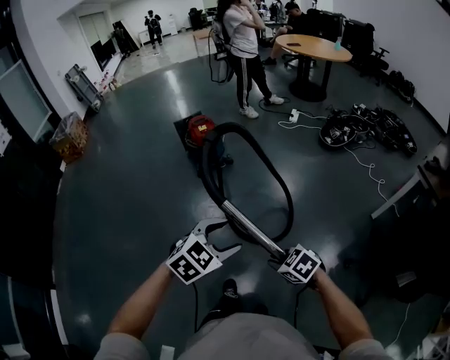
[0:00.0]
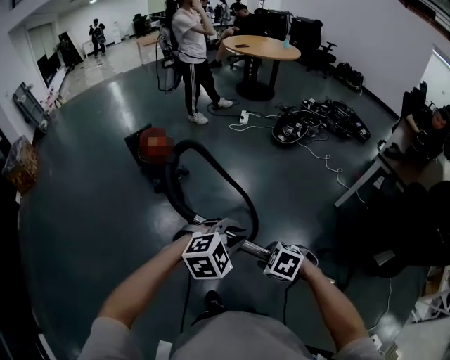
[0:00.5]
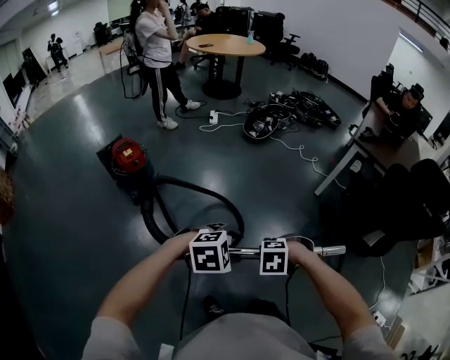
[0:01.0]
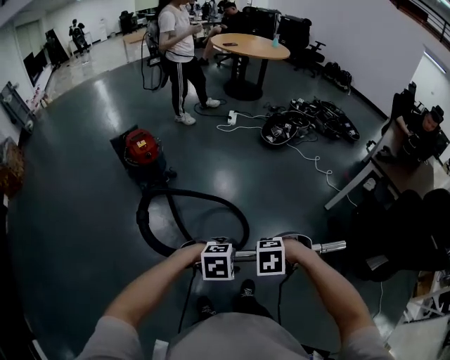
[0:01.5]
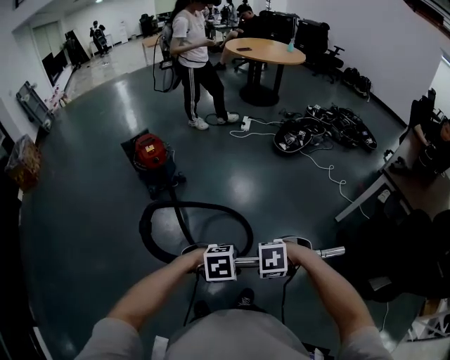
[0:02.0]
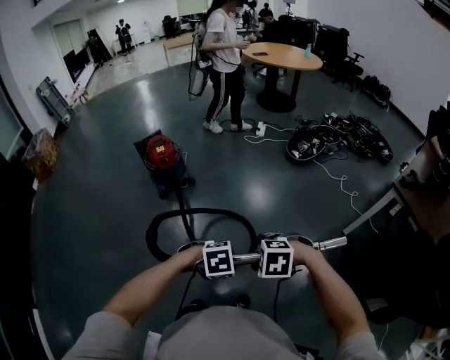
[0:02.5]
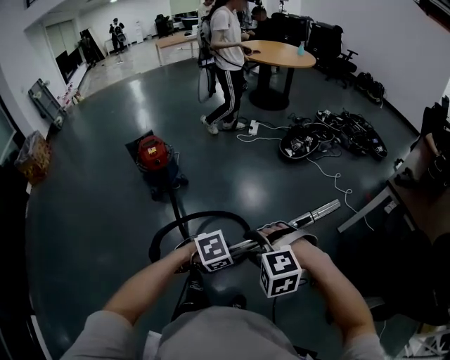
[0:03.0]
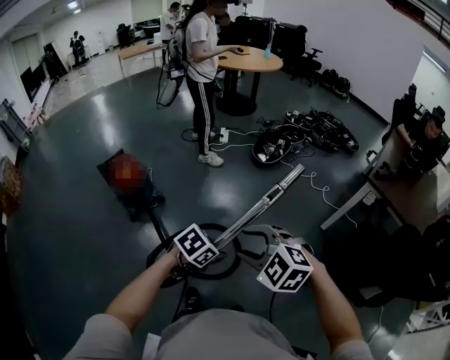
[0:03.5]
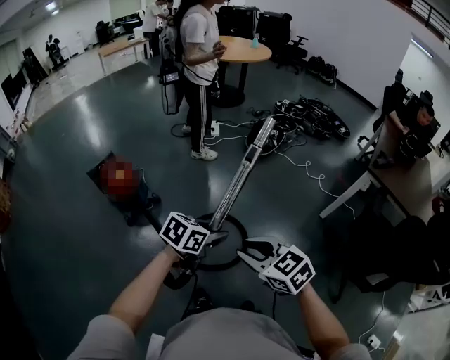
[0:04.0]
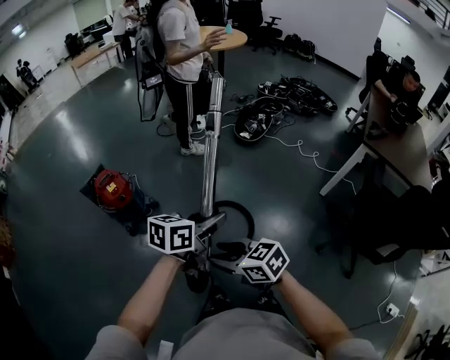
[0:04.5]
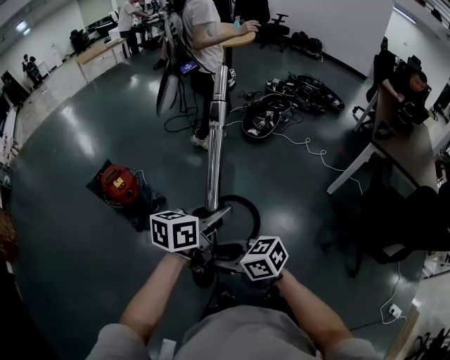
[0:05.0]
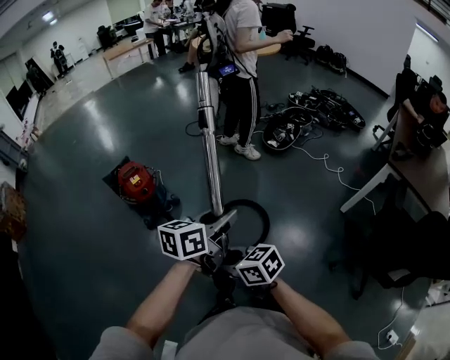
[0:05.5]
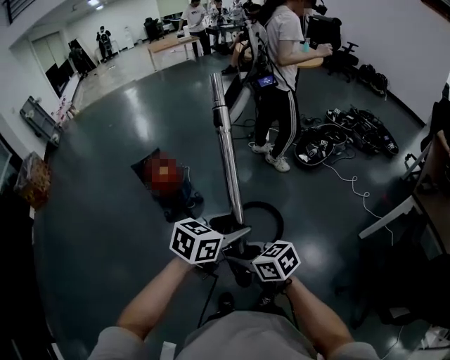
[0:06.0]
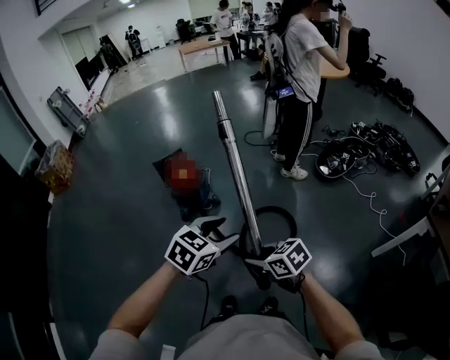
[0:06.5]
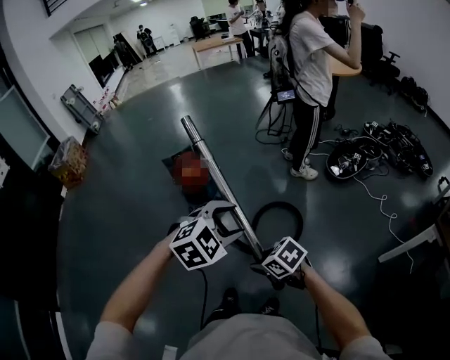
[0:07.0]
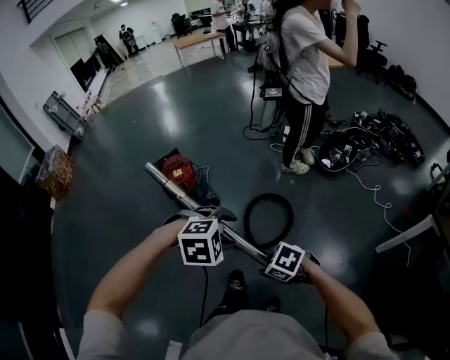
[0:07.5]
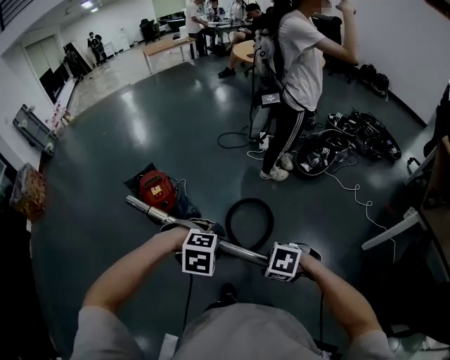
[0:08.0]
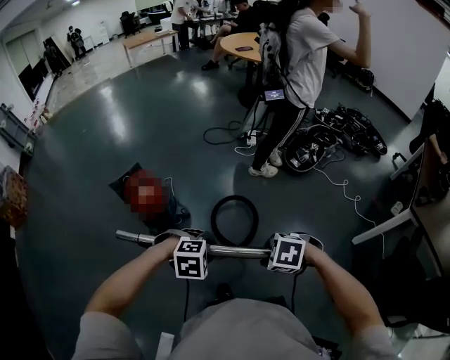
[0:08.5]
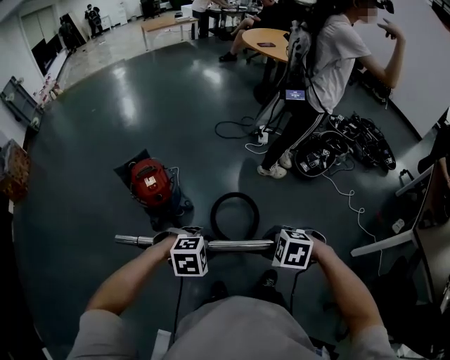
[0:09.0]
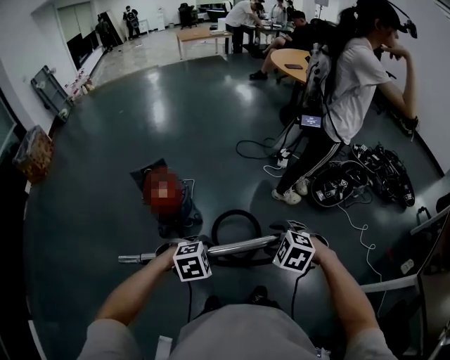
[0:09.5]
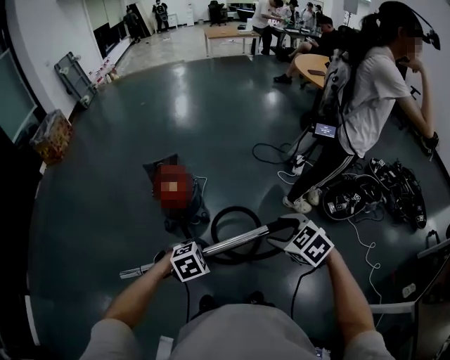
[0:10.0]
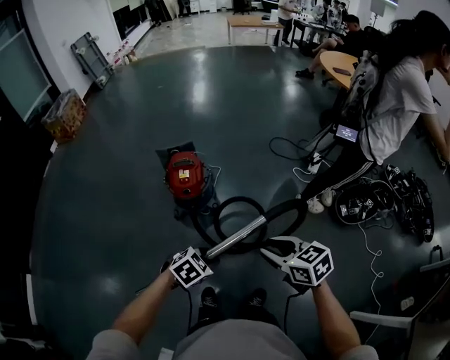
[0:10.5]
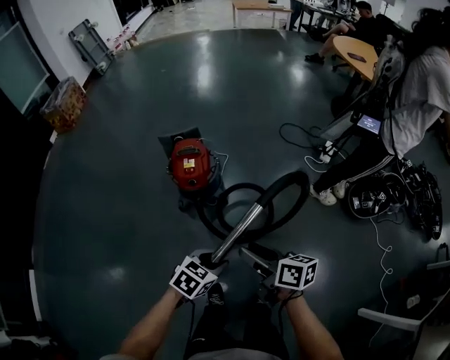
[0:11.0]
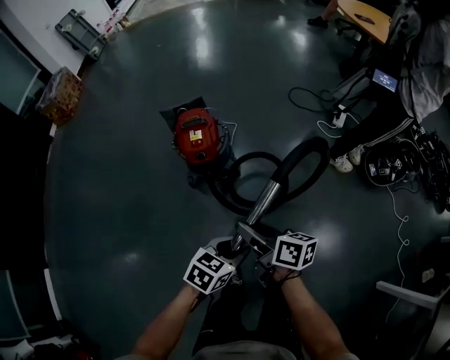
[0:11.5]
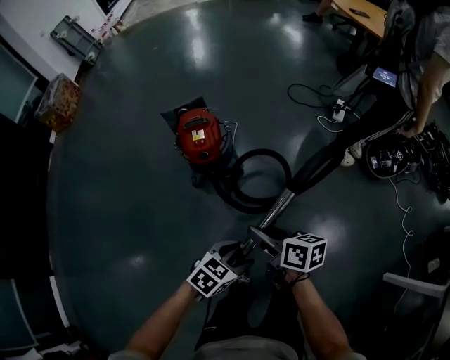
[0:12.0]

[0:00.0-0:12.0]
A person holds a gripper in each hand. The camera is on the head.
0:00.0 to 0:02.0: The left gripper changes place by about 20 cm, changes its angle by some 50 degrees, and closes up. Meanwhile the right gripper changes place by approximately 10 cm, and swivels approximately 40 degrees.
0:02.0 to 0:04.0: The right gripper changes place by approximately 25 cm, tips its fingers upward by roughly 40 degrees, and opens and closes again. The left gripper shifts by some 30 cm, and rotates roughly 50 degrees.
0:04.0 to 0:06.0: The right gripper shifts by roughly 15 cm, and swivels some 30 degrees, while the left gripper moves approximately 10 cm, changes its angle by approximately 20 degrees, and opens.
0:06.0 to 0:08.0: The right gripper moves approximately 15 cm, and angles its fingers downward, by about 40 degrees. The left gripper goes some 10 cm downward, and tilts its fingers approximately 50 degrees downward.
0:08.0 to 0:10.0: The right gripper changes place by about 30 cm, swivels some 30 degrees, and opens up. Meanwhile the left gripper changes place by approximately 15 cm, twists roughly 50 degrees counterclockwise, seen from behind, and closes its fingers.
0:10.0 to 0:12.0: The left gripper shifts roughly 10 cm downward and to the left, rotates about 40 degrees, and opens its fingers; the right gripper heads to the left and downward, covering roughly 25 cm, and twists about 60 degrees clockwise, seen from behind.

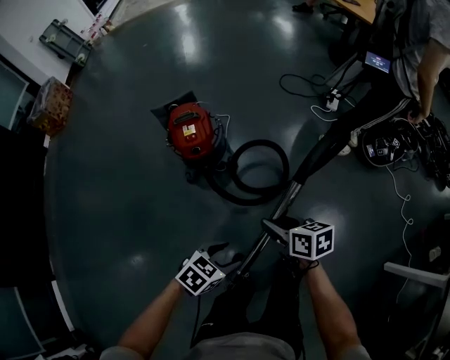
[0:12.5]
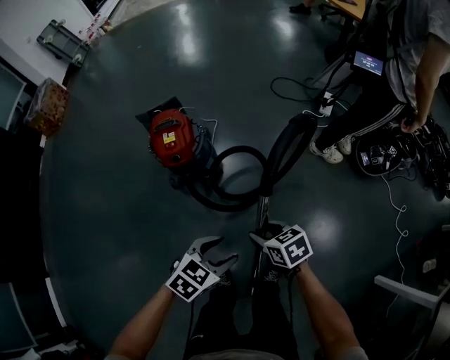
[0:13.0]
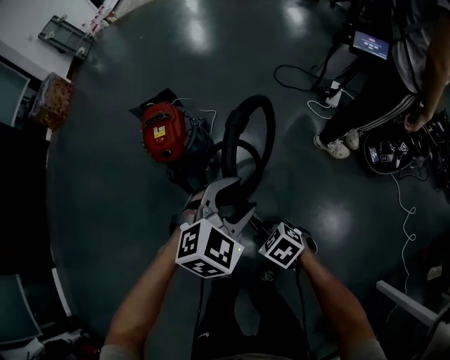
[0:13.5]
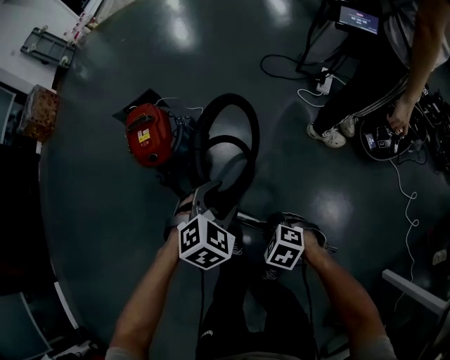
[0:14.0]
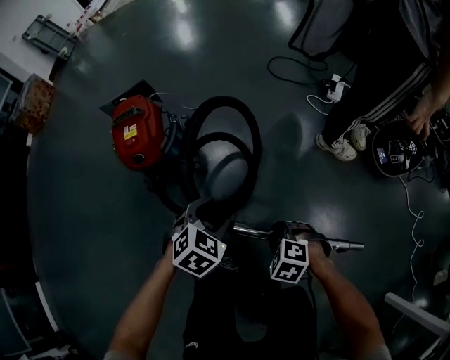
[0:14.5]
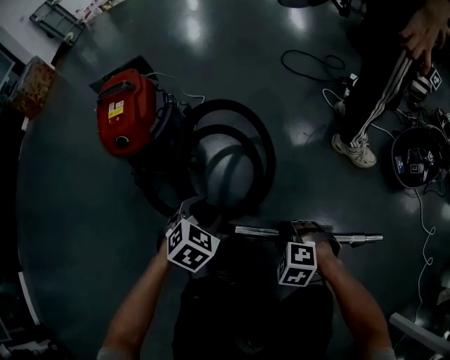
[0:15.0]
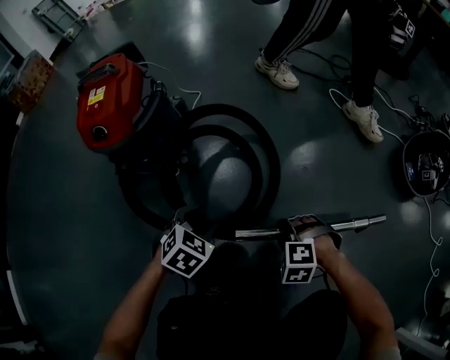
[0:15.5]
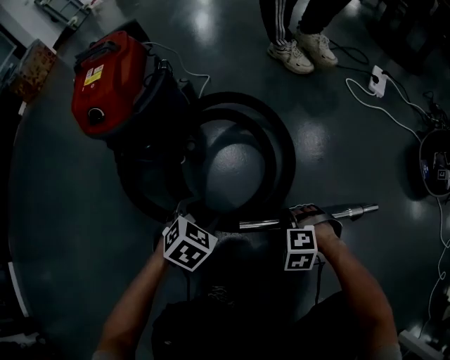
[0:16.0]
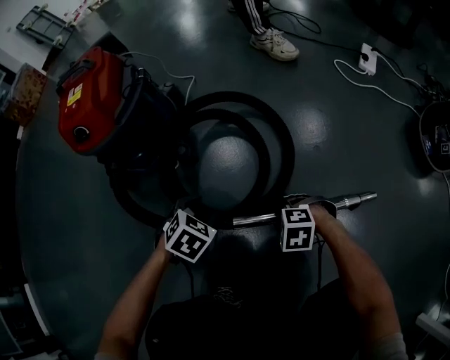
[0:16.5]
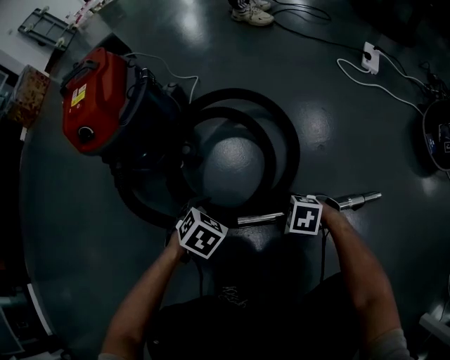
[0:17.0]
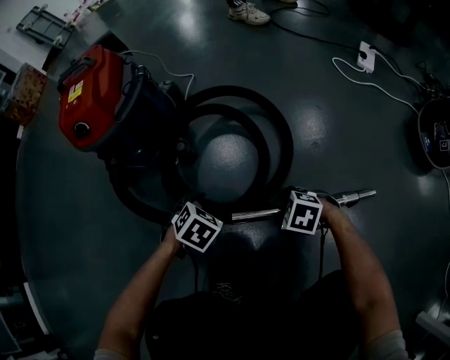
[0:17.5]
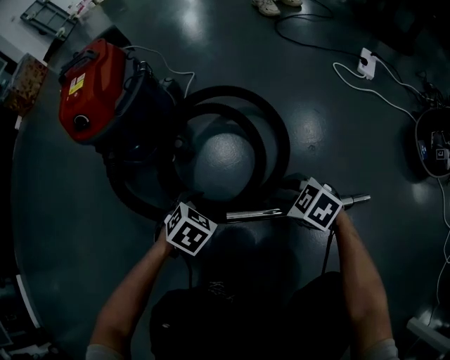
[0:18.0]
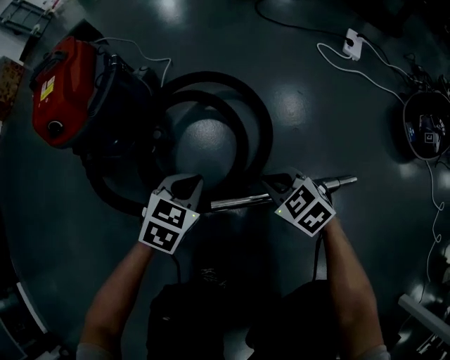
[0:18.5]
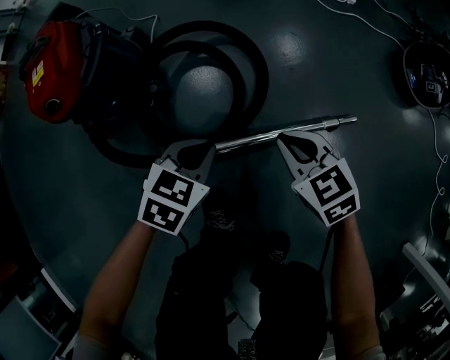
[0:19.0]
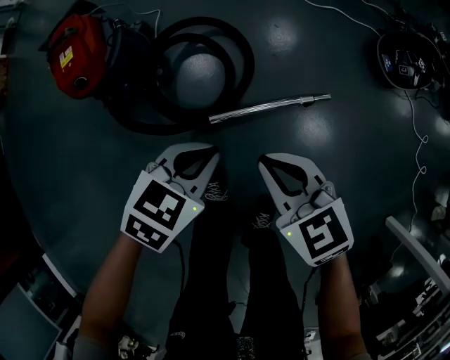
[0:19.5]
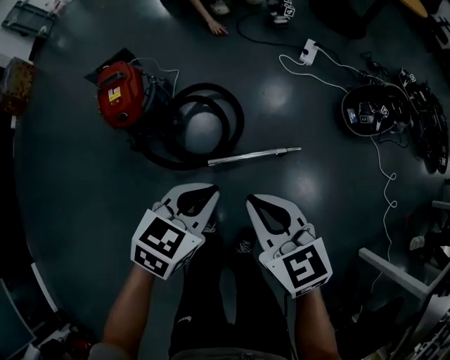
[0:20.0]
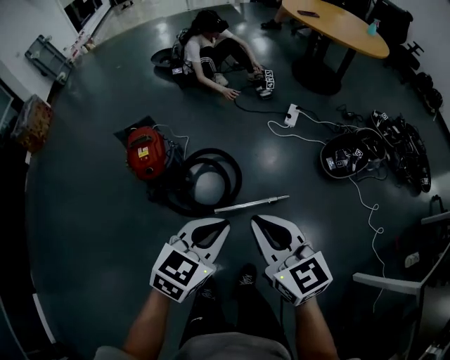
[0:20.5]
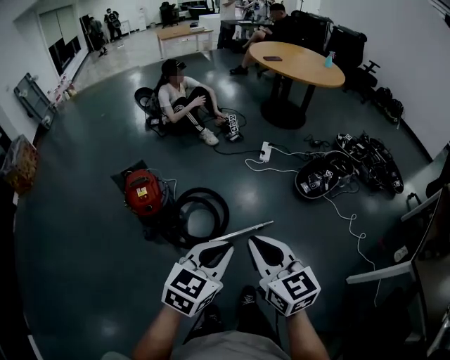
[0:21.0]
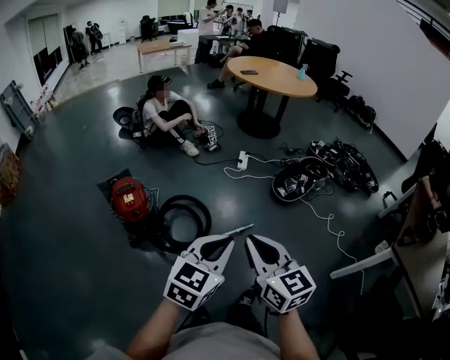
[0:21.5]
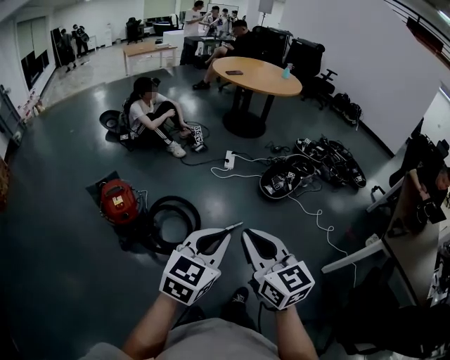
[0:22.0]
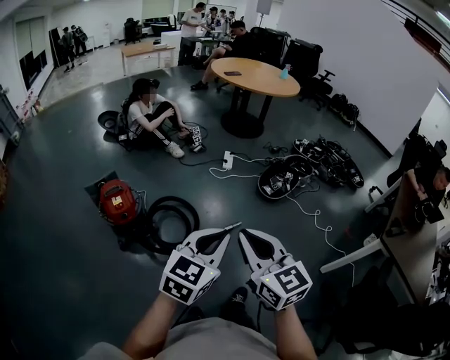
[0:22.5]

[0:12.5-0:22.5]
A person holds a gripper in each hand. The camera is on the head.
0:12.5 to 0:14.5: The right gripper travels downward by approximately 30 cm, and twists roughly 70 degrees counterclockwise, seen from behind. The left gripper ends up some 35 cm from where it was, and swivels some 30 degrees.
0:14.5 to 0:16.5: The two grippers go approximately 35 cm downward.
0:16.5 to 0:18.5: Both grippers move upward, roughly 10 cm. The left gripper closes. Meanwhile the right gripper rotates about 40 degrees, and closes its fingers.
0:18.5 to 0:20.5: Both grippers travel together upward, some 70 cm. The right gripper angles its fingers upward, by roughly 30 degrees. Meanwhile the left gripper changes its angle by approximately 20 degrees.
0:20.5 to 0:22.5: The left gripper is displaced upward and backward by approximately 20 cm, and swivels roughly 20 degrees; the right gripper travels backward and upward by approximately 20 cm, and rotates some 20 degrees.

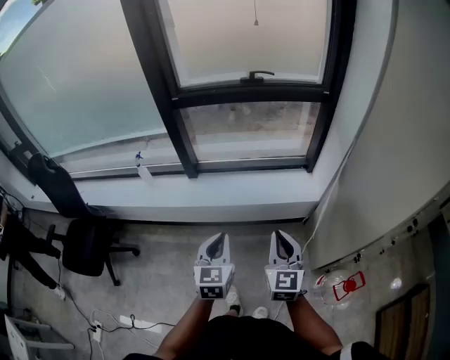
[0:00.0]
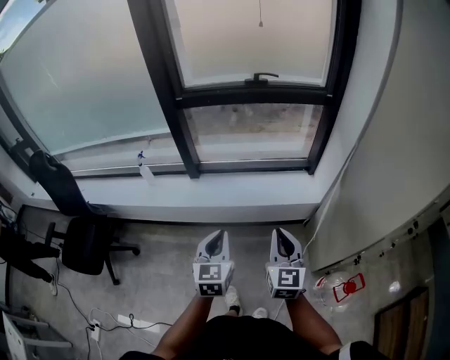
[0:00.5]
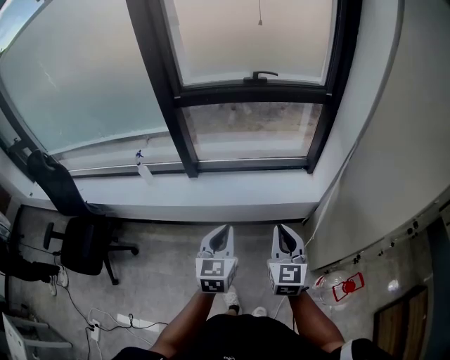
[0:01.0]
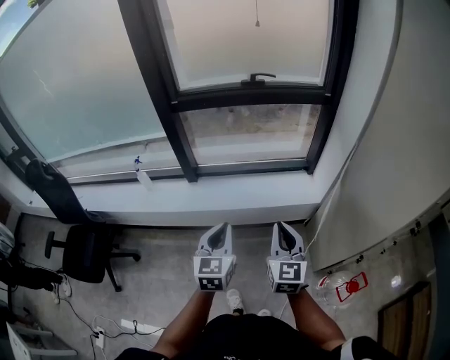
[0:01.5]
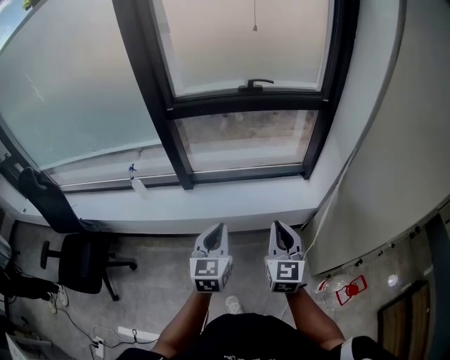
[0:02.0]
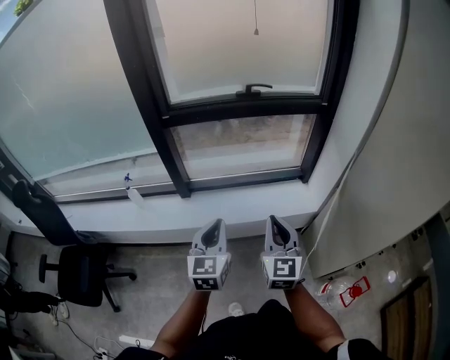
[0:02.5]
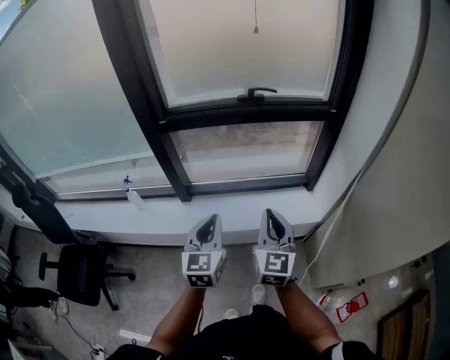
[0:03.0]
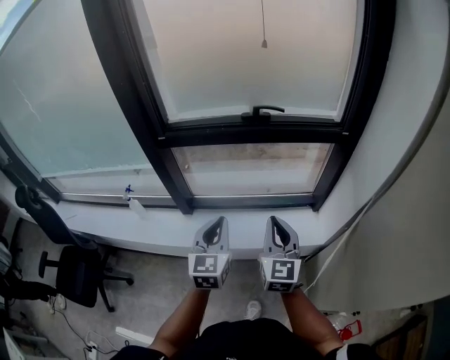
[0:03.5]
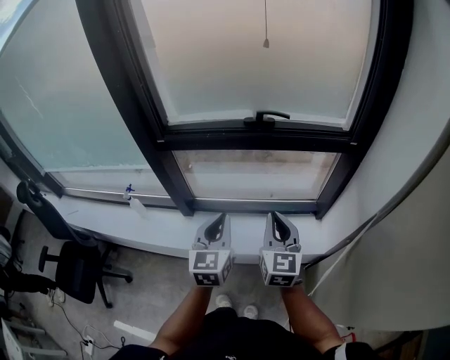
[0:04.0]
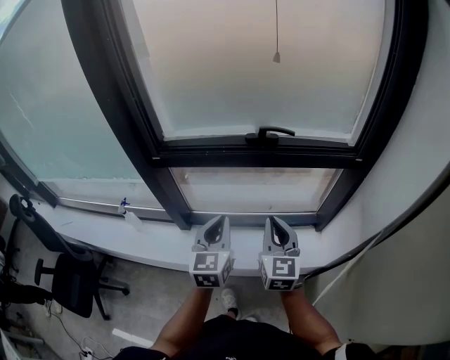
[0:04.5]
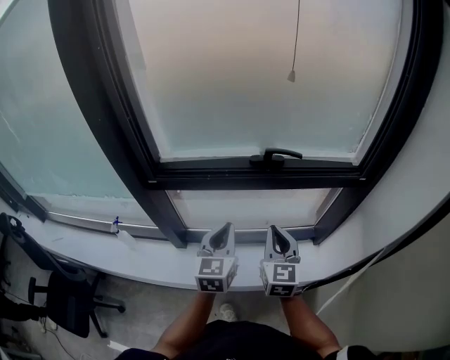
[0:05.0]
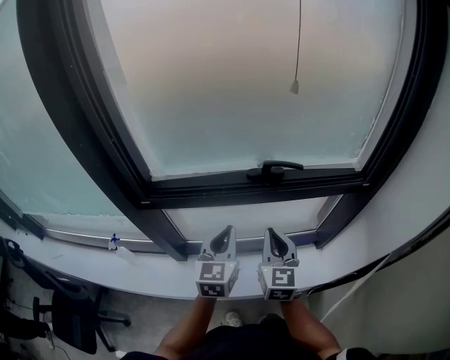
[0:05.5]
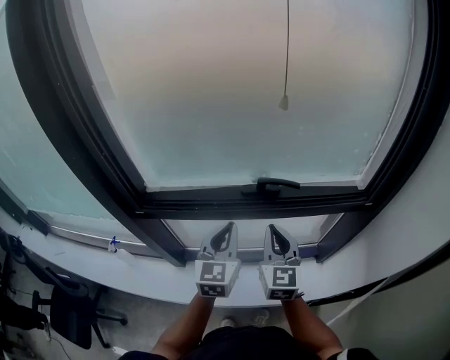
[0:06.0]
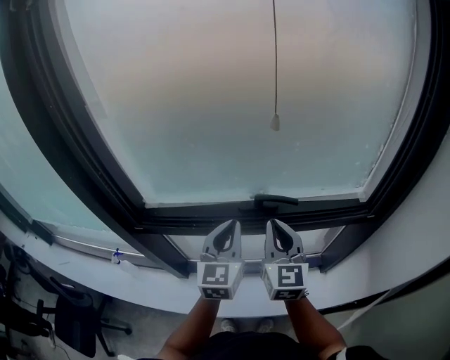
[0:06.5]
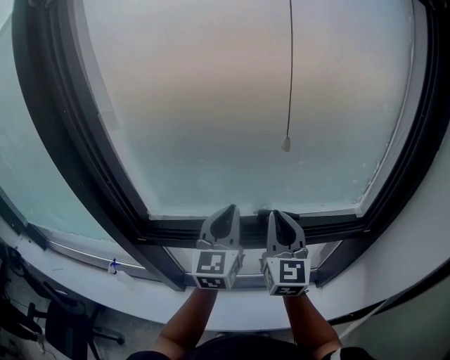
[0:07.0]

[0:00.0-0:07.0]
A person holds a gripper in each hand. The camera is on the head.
0:00.0 to 0:02.0: The grippers both shift forward by some 10 cm.
0:02.0 to 0:03.5: The grippers both shift forward by roughly 25 cm.
0:03.5 to 0:05.0: The grippers both shift forward by about 20 cm.
0:05.0 to 0:07.0: Both grippers move forward and upward, some 25 cm.
